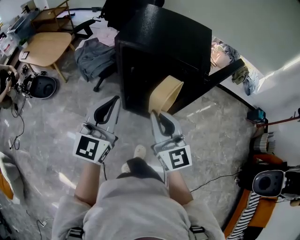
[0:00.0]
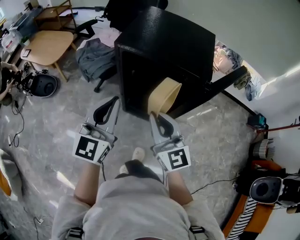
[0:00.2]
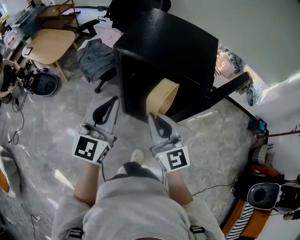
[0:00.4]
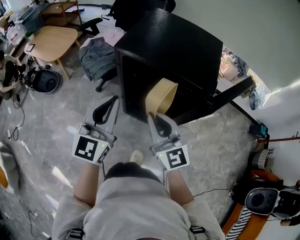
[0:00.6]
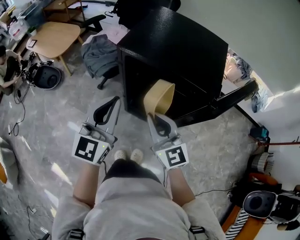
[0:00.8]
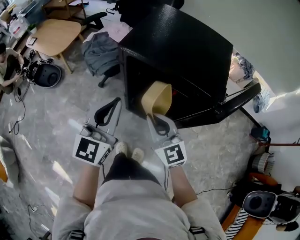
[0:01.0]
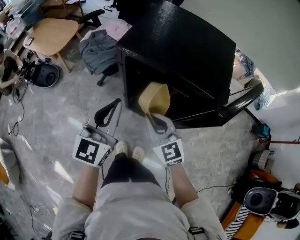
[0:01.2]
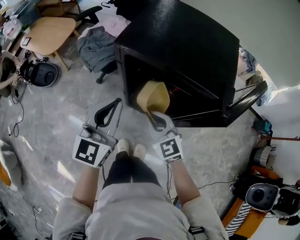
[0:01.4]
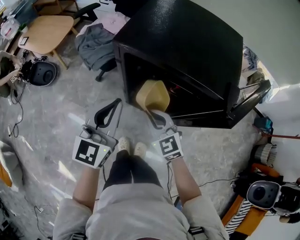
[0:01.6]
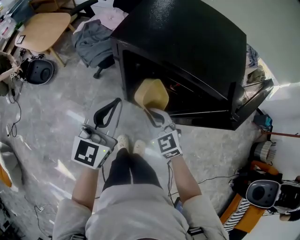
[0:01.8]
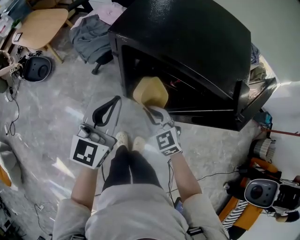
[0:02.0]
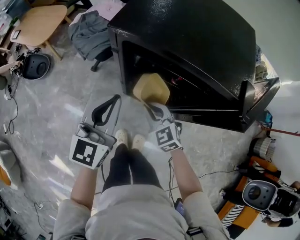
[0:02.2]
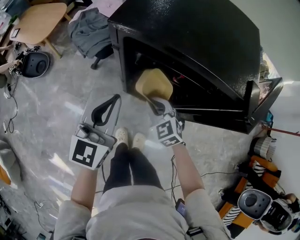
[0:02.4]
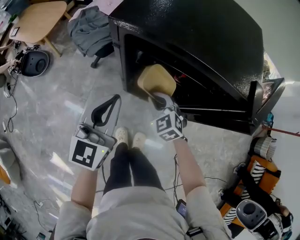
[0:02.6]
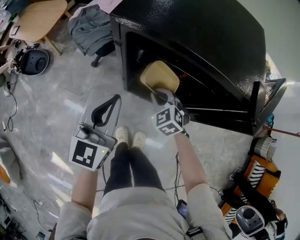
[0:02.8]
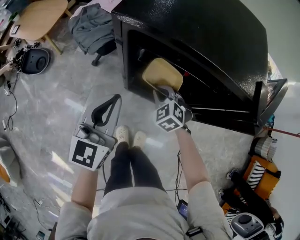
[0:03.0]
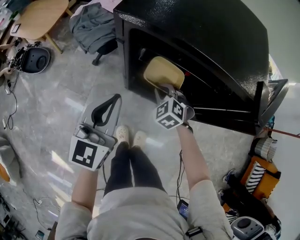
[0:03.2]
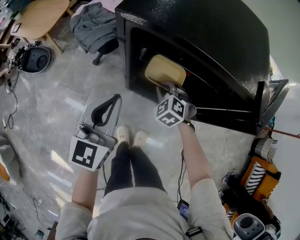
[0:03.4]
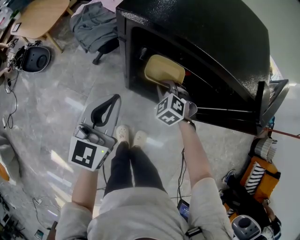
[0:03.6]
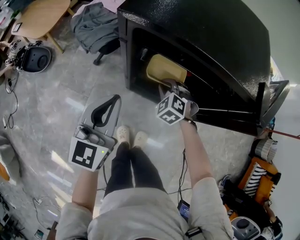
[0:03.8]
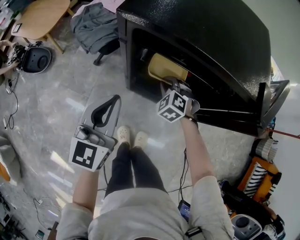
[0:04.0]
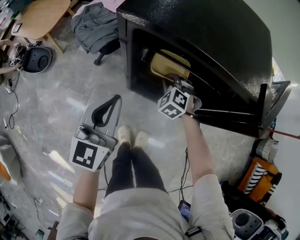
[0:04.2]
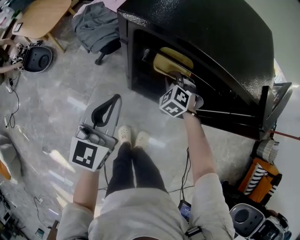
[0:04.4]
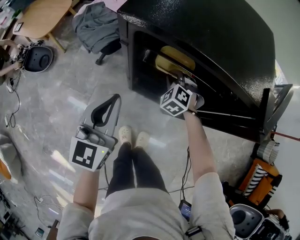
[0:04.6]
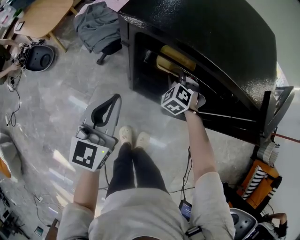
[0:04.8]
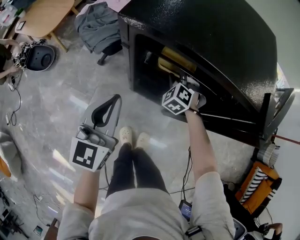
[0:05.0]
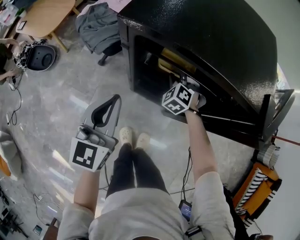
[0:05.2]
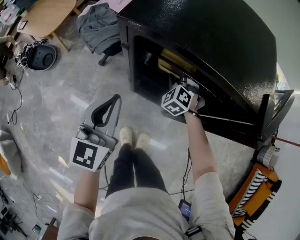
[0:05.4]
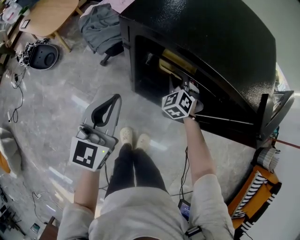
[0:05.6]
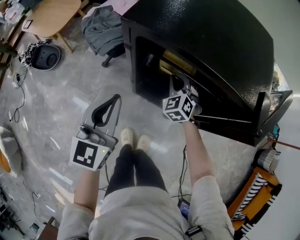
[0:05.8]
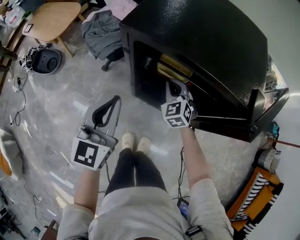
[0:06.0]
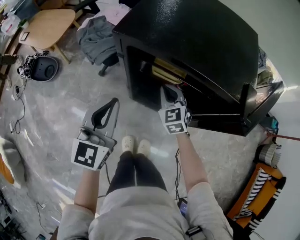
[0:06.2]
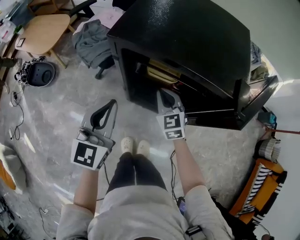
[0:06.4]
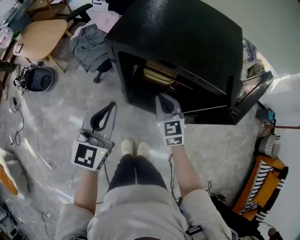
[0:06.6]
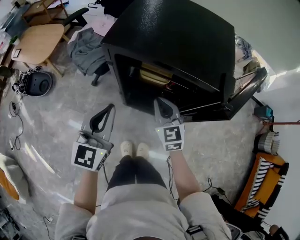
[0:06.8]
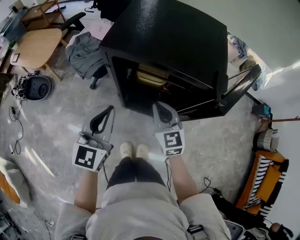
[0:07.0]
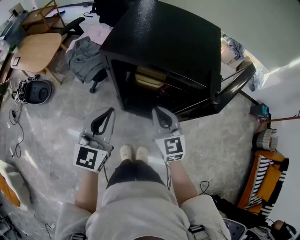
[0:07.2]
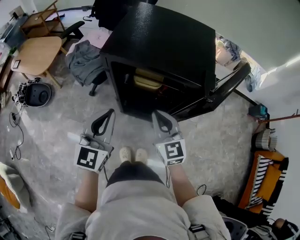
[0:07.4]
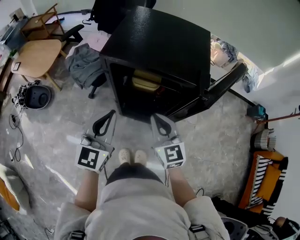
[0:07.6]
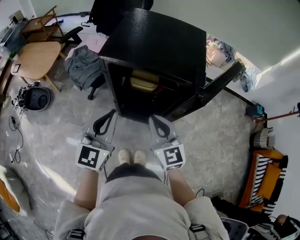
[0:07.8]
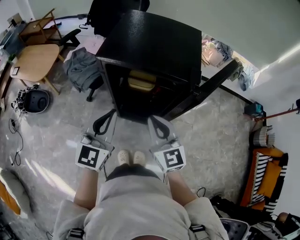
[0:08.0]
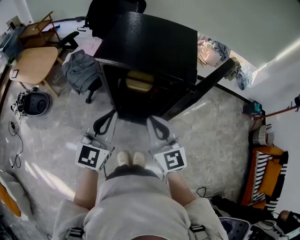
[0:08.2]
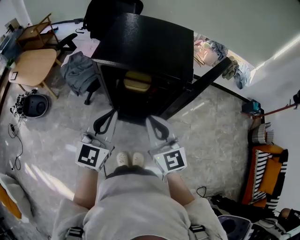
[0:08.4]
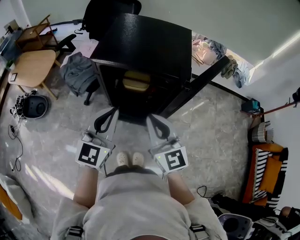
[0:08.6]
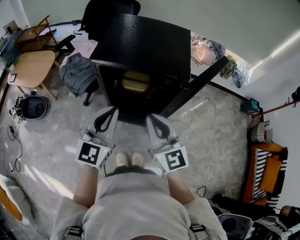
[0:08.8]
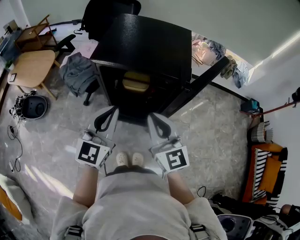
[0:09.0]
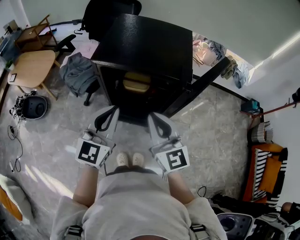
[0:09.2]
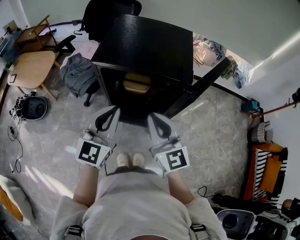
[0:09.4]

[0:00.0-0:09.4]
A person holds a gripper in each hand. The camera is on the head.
0.0 to 1.6 s: The left gripper shifts about 15 cm forward and downward. The right gripper goes approximately 25 cm downward and forward, and turns by roughly 30 degrees.
1.6 to 3.2 s: The left gripper shifts approximately 10 cm downward. Meanwhile the right gripper shifts roughly 20 cm downward and forward, and swivels some 30 degrees.
3.2 to 4.8 s: The right gripper goes approximately 10 cm forward.
4.8 to 6.2 s: The right gripper is displaced upward and backward by some 10 cm, and changes its angle by approximately 40 degrees.
6.2 to 7.8 s: The right gripper moves upward and backward, approximately 25 cm, and rotates about 30 degrees; the left gripper moves upward, backward and to the right, roughly 10 cm.
7.8 to 9.4 s: The right gripper moves upward, some 10 cm. The left gripper shifts by roughly 5 cm.

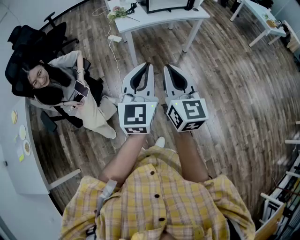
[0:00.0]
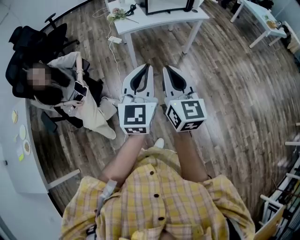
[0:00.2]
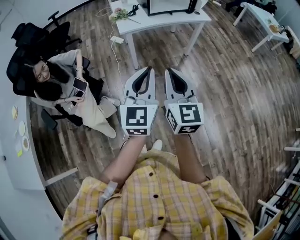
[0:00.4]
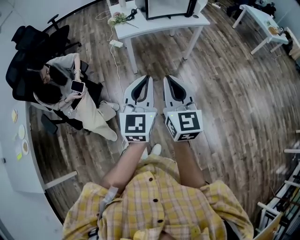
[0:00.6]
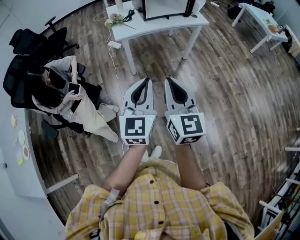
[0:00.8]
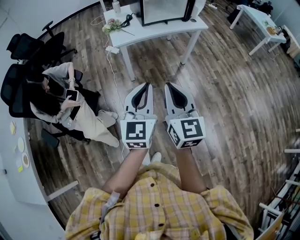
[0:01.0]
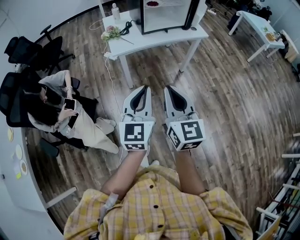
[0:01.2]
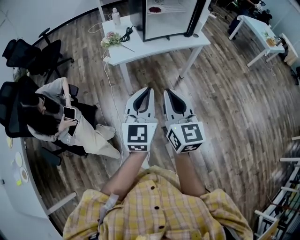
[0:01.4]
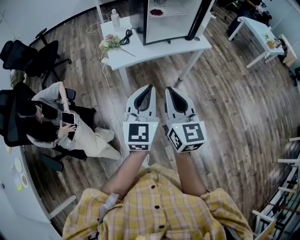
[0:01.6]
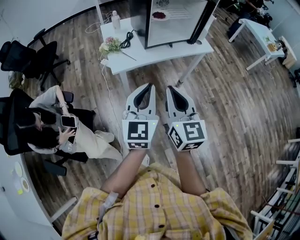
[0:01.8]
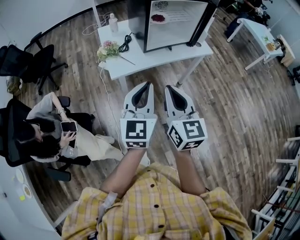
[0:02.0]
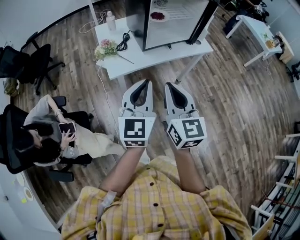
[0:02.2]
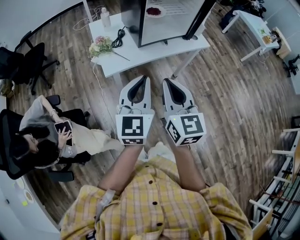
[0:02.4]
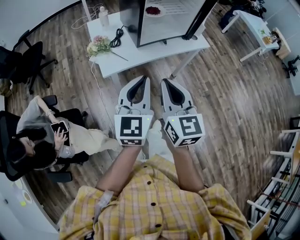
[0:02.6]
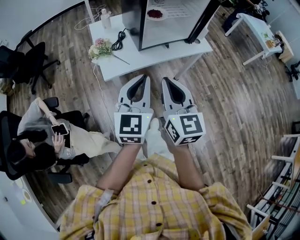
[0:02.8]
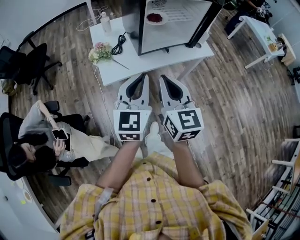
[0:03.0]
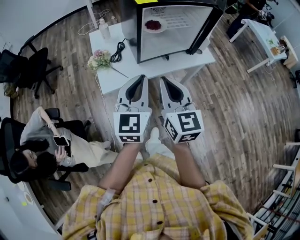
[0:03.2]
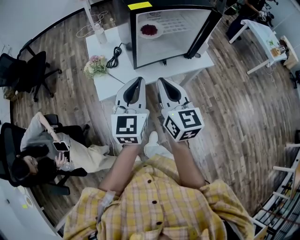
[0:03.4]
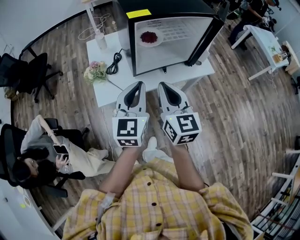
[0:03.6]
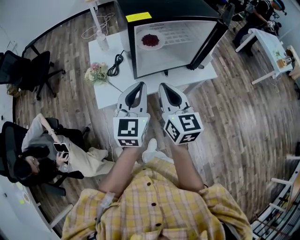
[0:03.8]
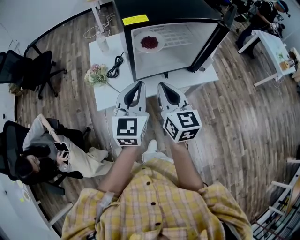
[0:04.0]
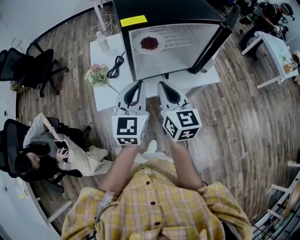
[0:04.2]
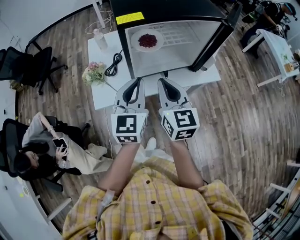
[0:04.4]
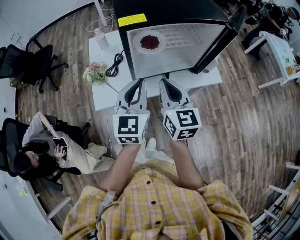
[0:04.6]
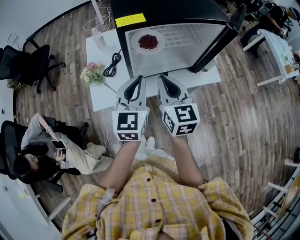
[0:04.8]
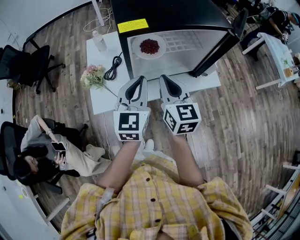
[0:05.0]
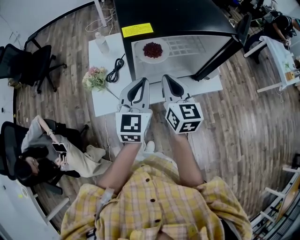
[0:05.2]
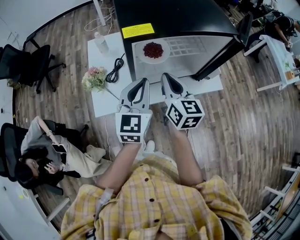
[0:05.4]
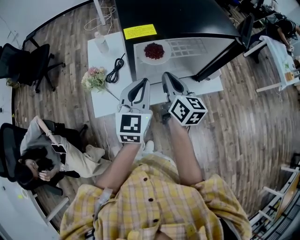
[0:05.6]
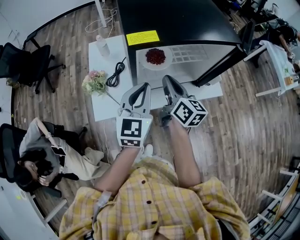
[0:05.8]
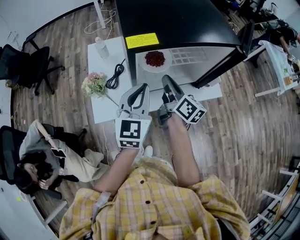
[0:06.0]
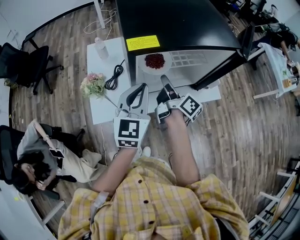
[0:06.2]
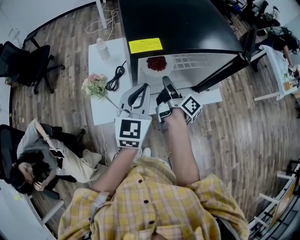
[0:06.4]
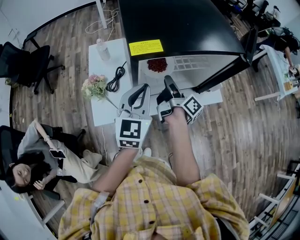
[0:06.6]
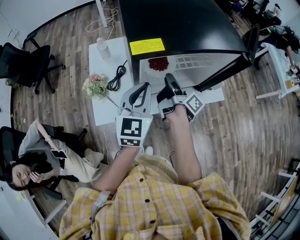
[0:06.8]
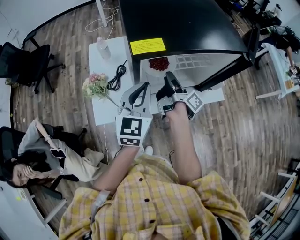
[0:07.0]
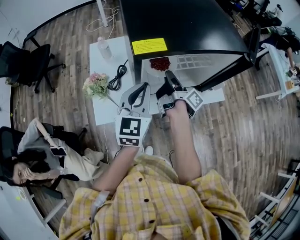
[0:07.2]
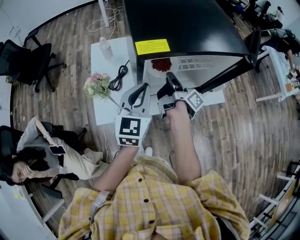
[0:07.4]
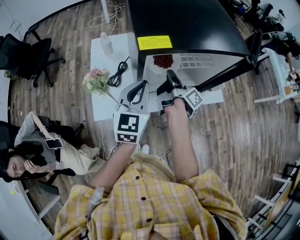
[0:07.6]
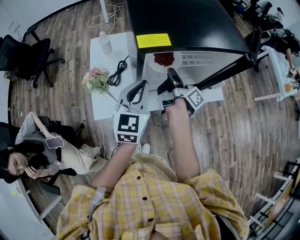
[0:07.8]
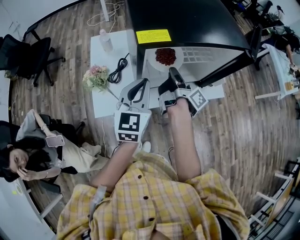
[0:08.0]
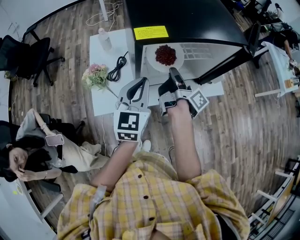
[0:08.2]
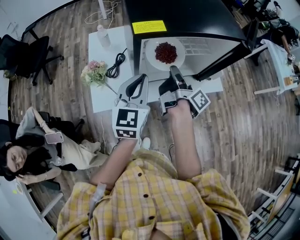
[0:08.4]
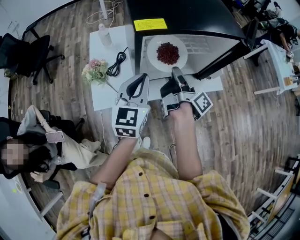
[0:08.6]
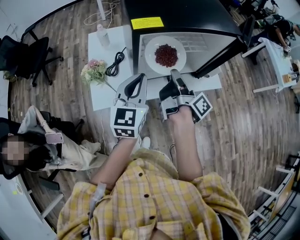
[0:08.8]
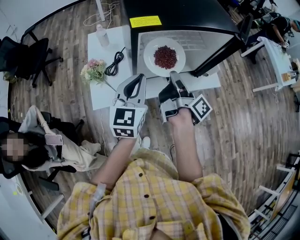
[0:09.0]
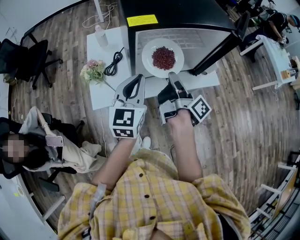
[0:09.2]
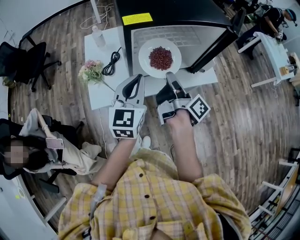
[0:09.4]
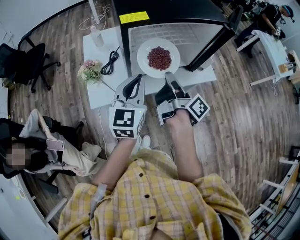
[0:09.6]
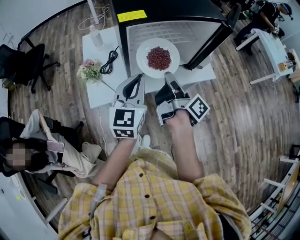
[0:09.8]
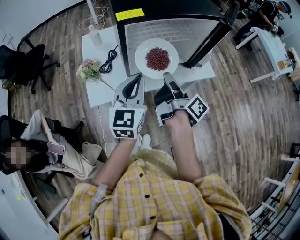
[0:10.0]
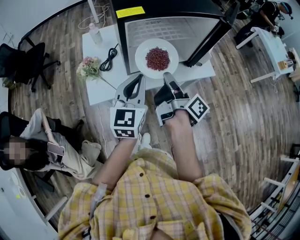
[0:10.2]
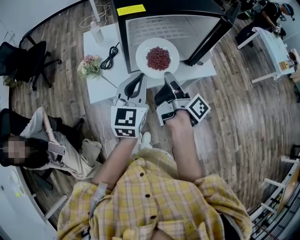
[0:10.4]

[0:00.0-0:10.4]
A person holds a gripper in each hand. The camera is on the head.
0.0 to 1.4 s: The two grippers go roughly 15 cm forward.
1.4 to 3.0 s: Both grippers travel together forward, approximately 25 cm.
3.0 to 4.4 s: The two grippers go roughly 20 cm forward and to the right.
4.4 to 6.0 s: The right gripper shifts some 15 cm forward and downward, and twists roughly 40 degrees clockwise, seen from behind, while the left gripper travels forward by approximately 10 cm.
6.0 to 7.4 s: The right gripper moves about 5 cm, twists some 40 degrees clockwise, seen from behind, and opens, then closes once more.
7.4 to 9.0 s: The left gripper moves backward, approximately 5 cm. Meanwhile the right gripper travels backward and upward by about 10 cm.
9.0 to 10.4 s: The two grippers go about 5 cm backward.

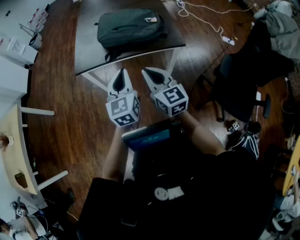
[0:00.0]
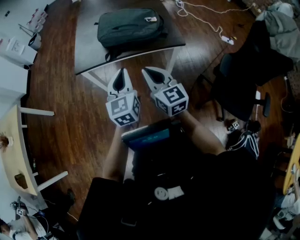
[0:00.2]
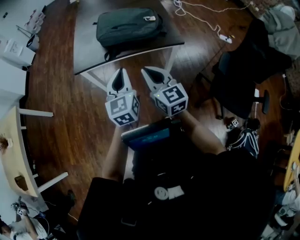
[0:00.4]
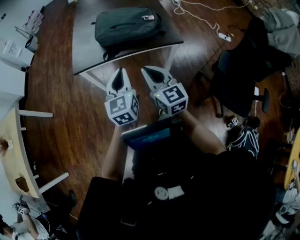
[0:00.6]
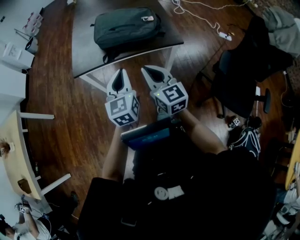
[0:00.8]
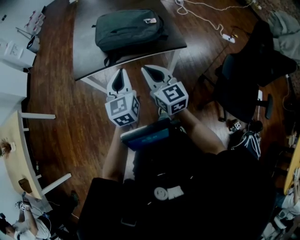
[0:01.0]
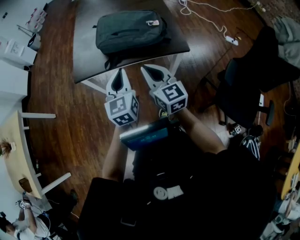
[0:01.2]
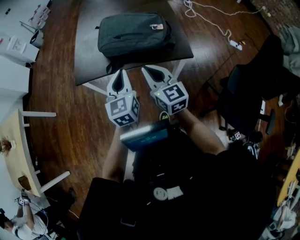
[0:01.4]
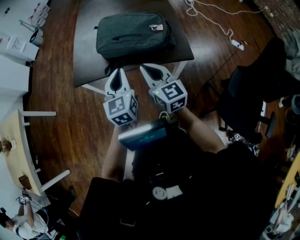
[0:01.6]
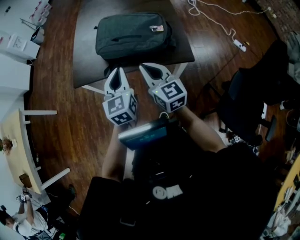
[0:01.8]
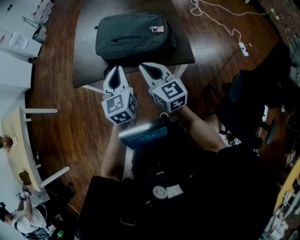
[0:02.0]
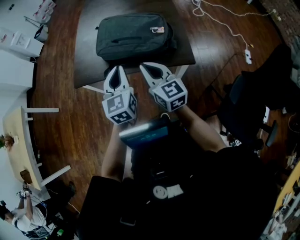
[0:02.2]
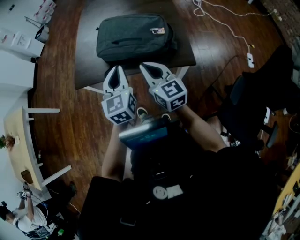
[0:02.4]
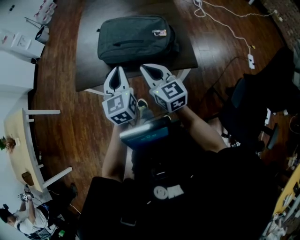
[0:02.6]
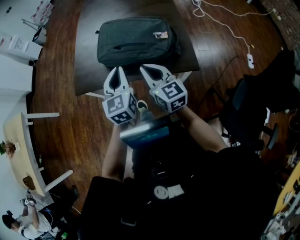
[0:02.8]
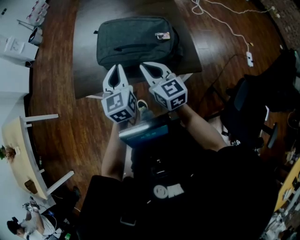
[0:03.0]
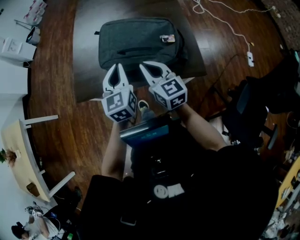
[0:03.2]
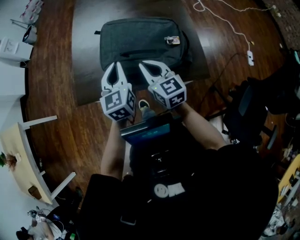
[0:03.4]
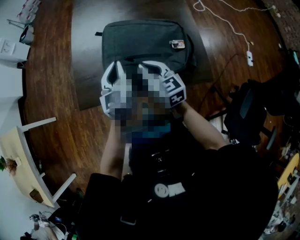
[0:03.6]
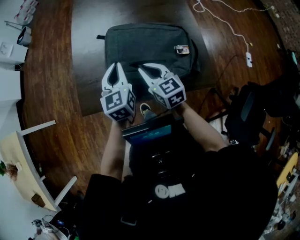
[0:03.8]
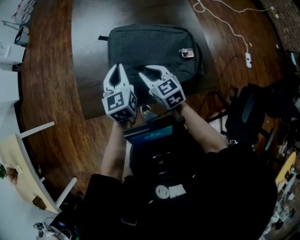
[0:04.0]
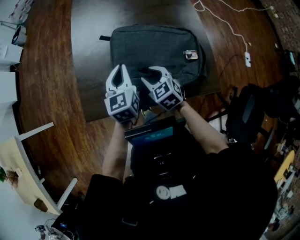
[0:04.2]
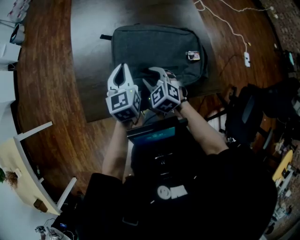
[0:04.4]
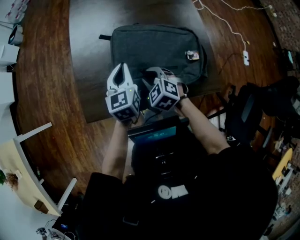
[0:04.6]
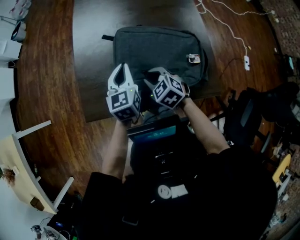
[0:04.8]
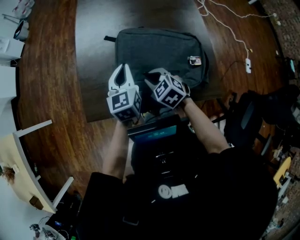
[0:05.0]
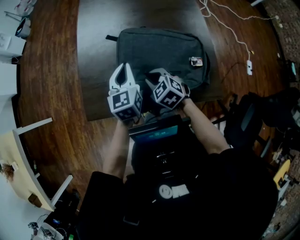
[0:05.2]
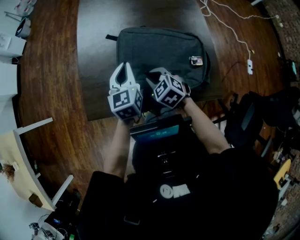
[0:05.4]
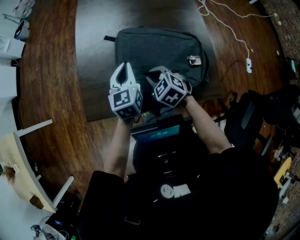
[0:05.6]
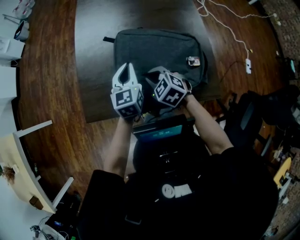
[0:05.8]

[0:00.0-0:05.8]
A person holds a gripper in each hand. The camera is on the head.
0.0 to 1.4 s: Both grippers move forward, some 10 cm.
1.4 to 2.8 s: Both grippers move forward, roughly 10 cm.
2.8 to 4.4 s: The left gripper moves forward, about 25 cm. Meanwhile the right gripper heads forward and downward, covering approximately 25 cm, tilts its fingers about 40 degrees downward, and opens its fingers.
4.4 to 5.8 s: The right gripper closes.
